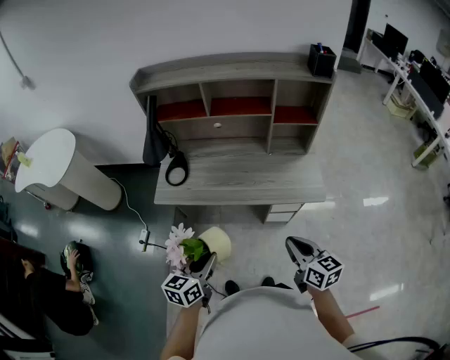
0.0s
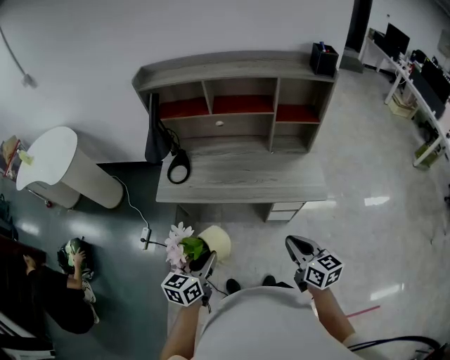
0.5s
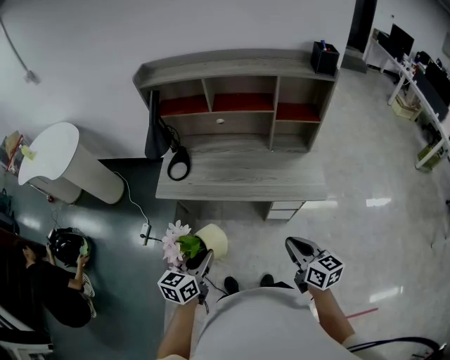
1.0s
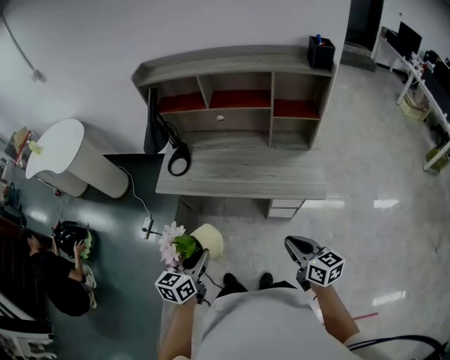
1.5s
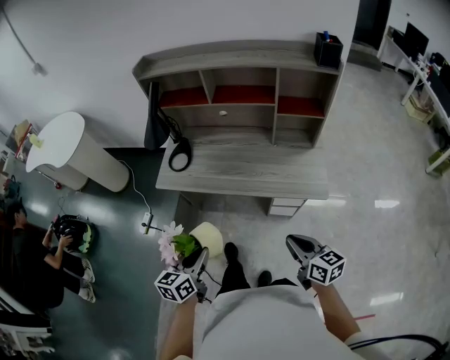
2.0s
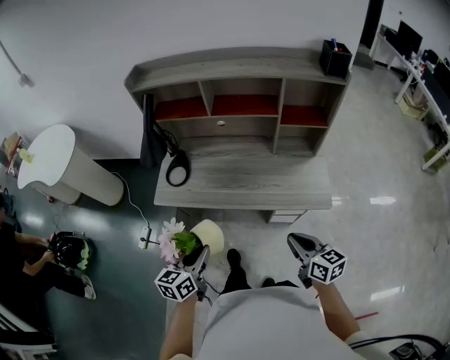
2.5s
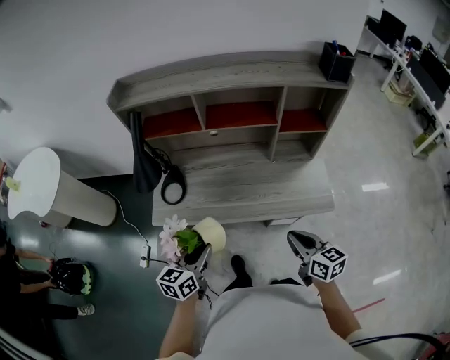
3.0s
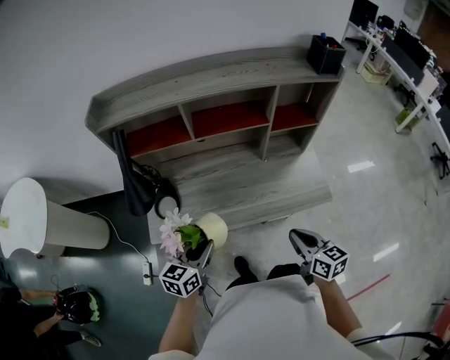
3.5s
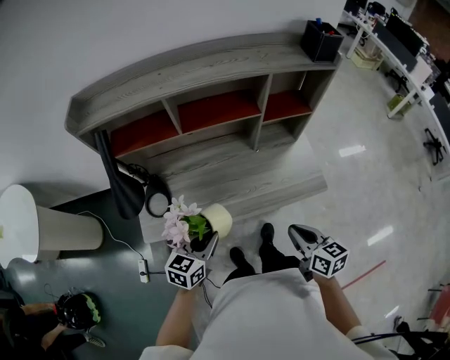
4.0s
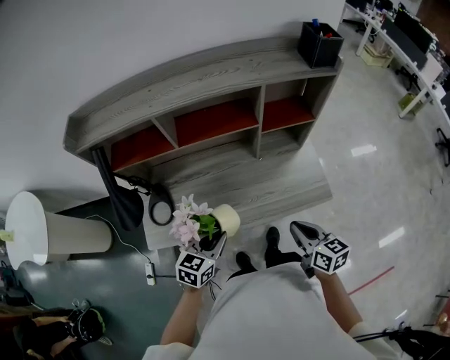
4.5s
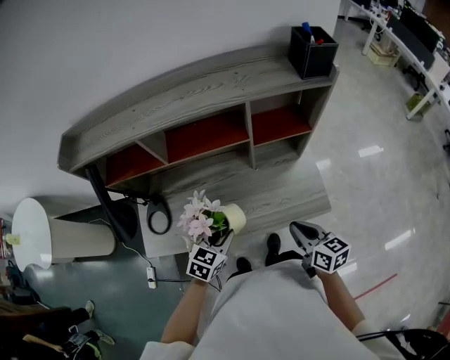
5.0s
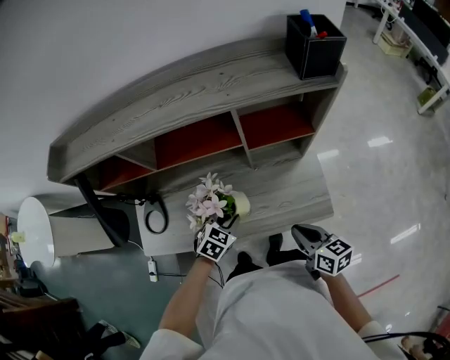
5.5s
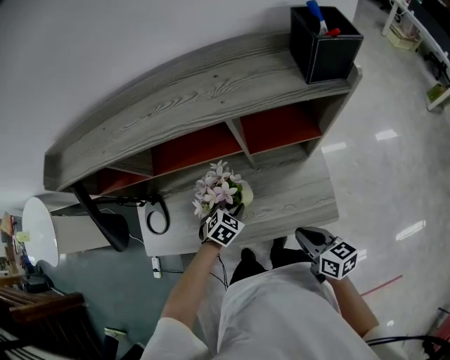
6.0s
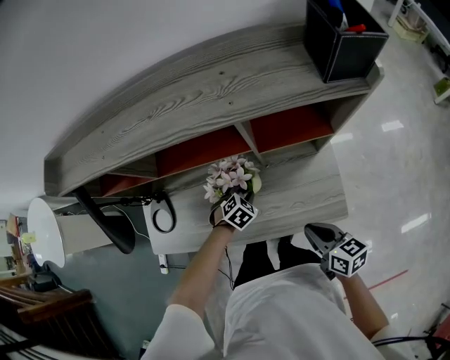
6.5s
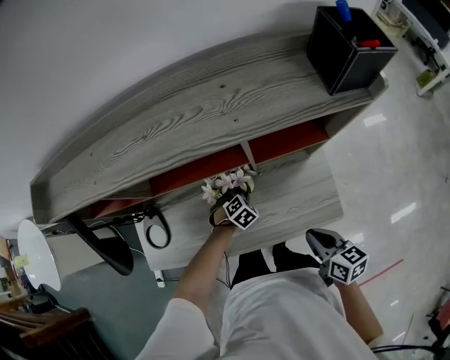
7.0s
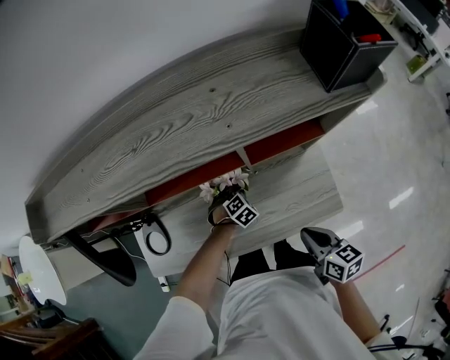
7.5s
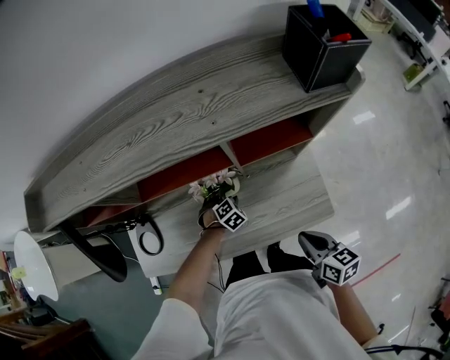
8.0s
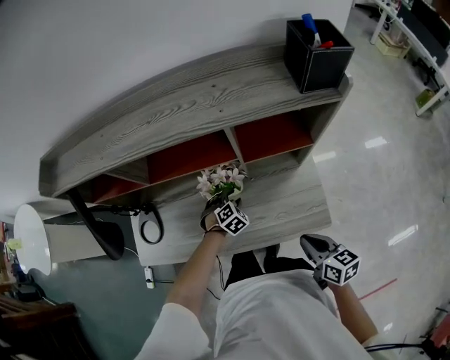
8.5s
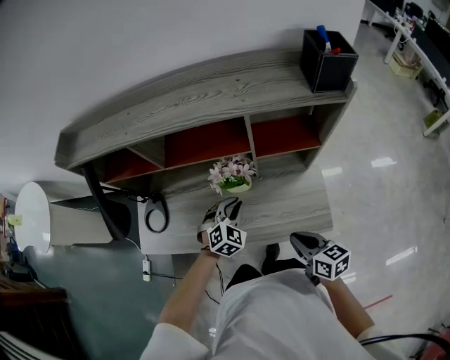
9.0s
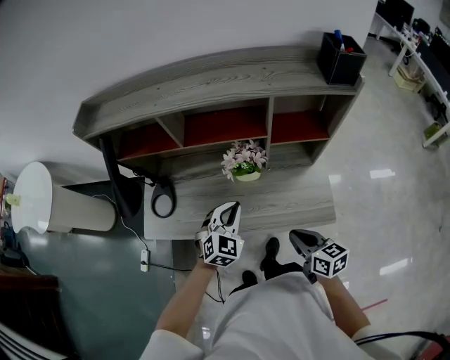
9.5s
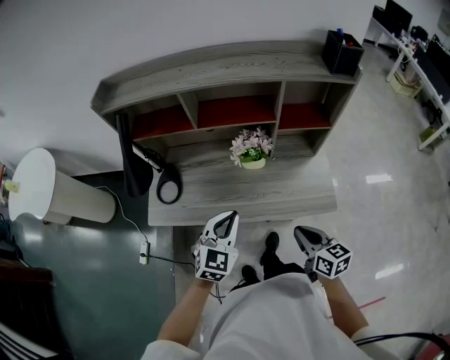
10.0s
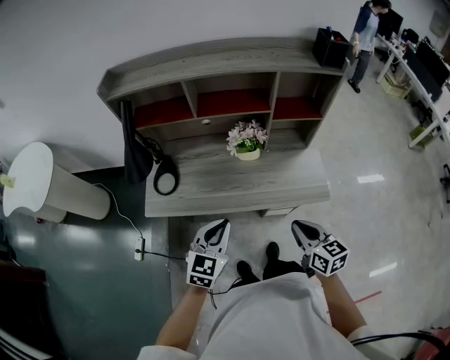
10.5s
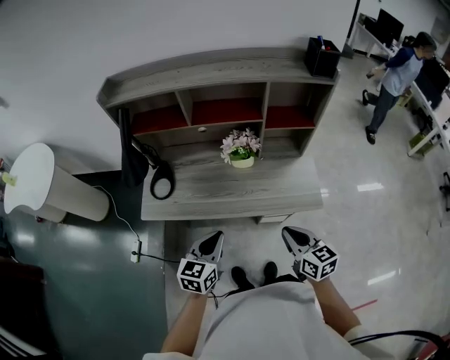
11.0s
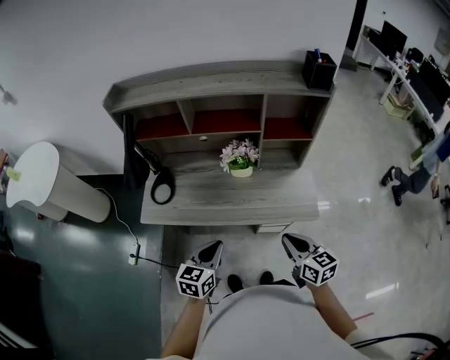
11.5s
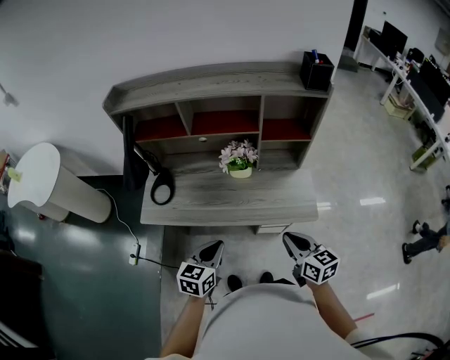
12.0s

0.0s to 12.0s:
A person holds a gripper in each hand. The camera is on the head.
0.0s to 2.0s: The right gripper goes approximately 5 cm to the right.
2.0s to 4.0s: The left gripper shifts by approximately 30 cm, and swivels some 40 degrees, while the right gripper ends up approximately 20 cm from where it was, and rotates approximately 20 degrees.
4.0s to 6.0s: The right gripper shifts approximately 20 cm forward and to the right. The left gripper moves forward, to the right and downward, roughly 35 cm, and tilts its fingers approximately 30 degrees downward.
6.0s to 8.0s: The left gripper goes some 15 cm downward and forward, swivels roughly 20 degrees, and opens up.
8.0s to 10.0s: The left gripper heads upward, backward and to the left, covering roughly 40 cm, tips its fingers upward by some 50 degrees, and closes up. The right gripper goes approximately 15 cm backward, to the left and upward.
10.0s to 12.0s: The left gripper goes roughly 10 cm backward, and rotates roughly 30 degrees, while the right gripper changes place by some 5 cm.

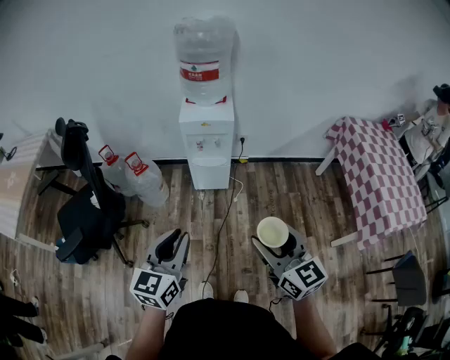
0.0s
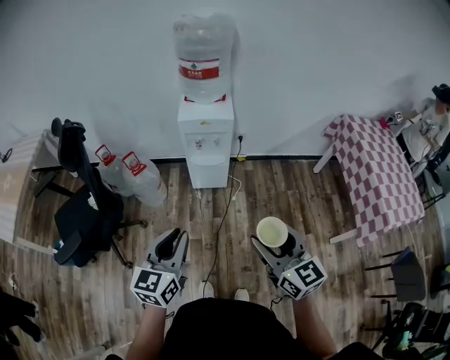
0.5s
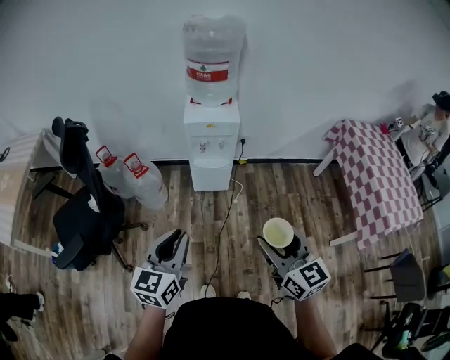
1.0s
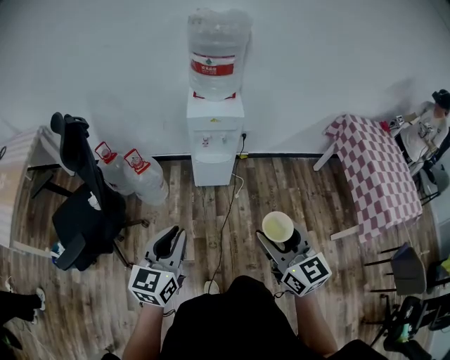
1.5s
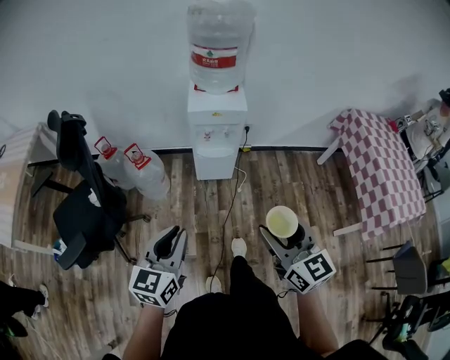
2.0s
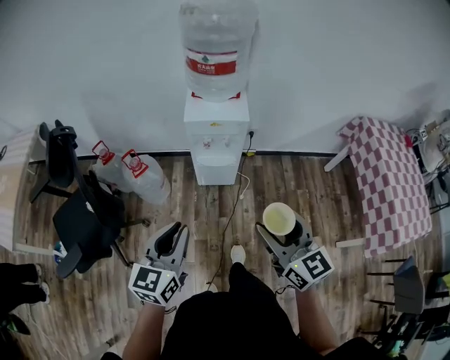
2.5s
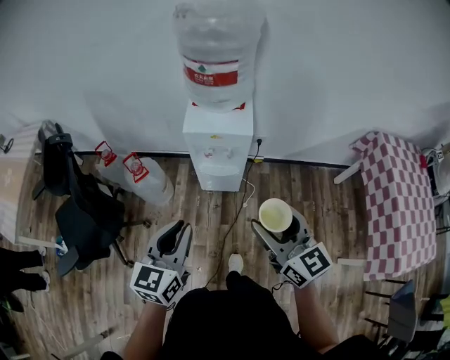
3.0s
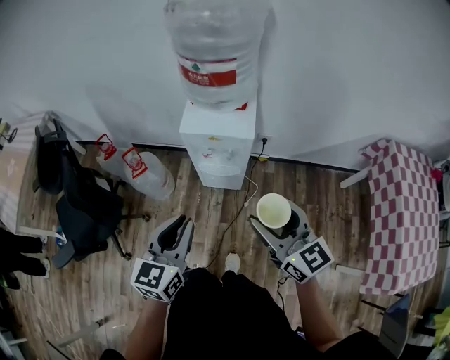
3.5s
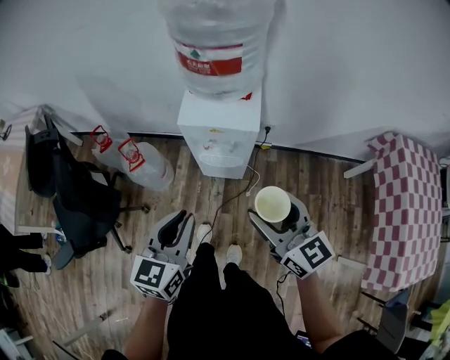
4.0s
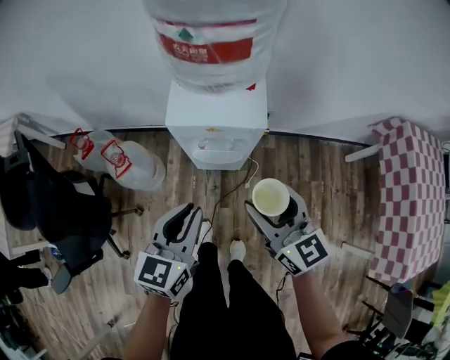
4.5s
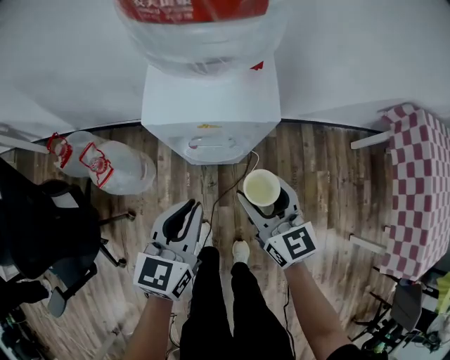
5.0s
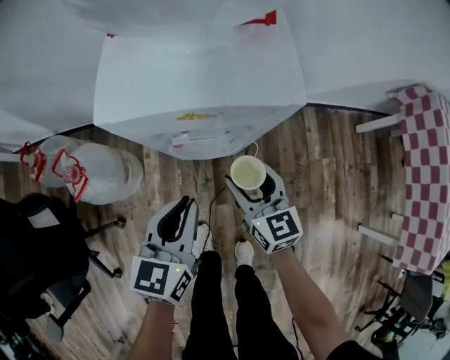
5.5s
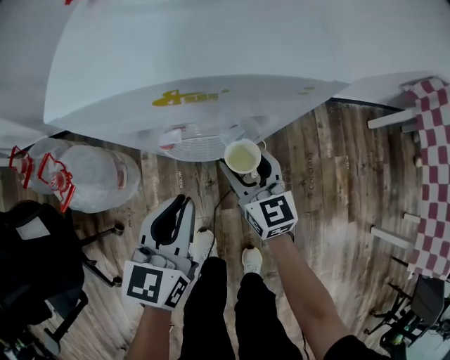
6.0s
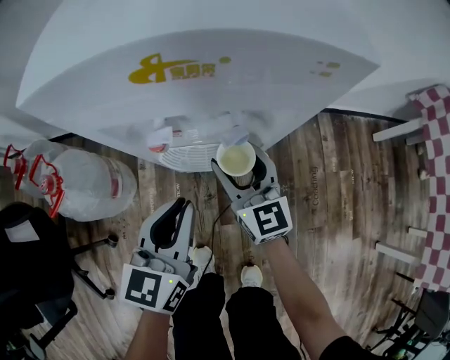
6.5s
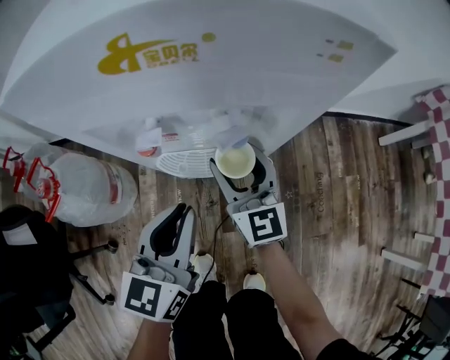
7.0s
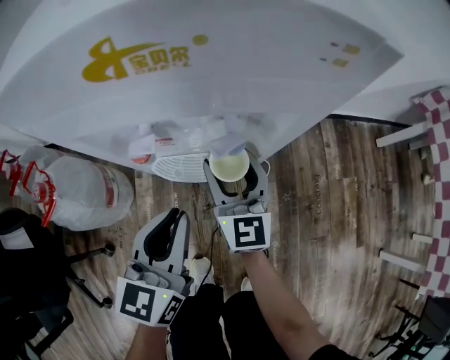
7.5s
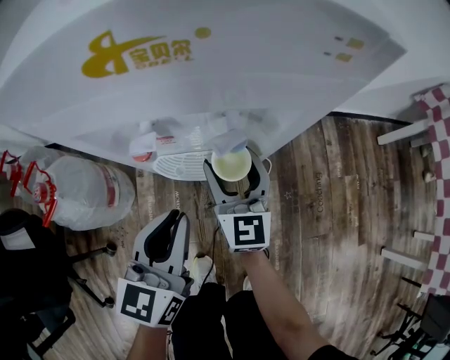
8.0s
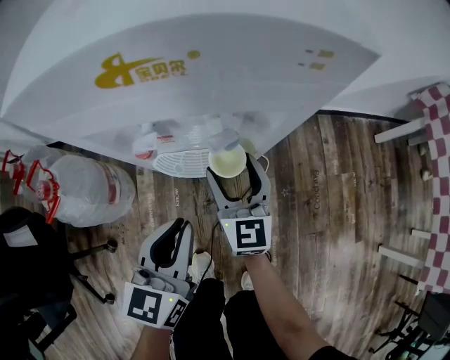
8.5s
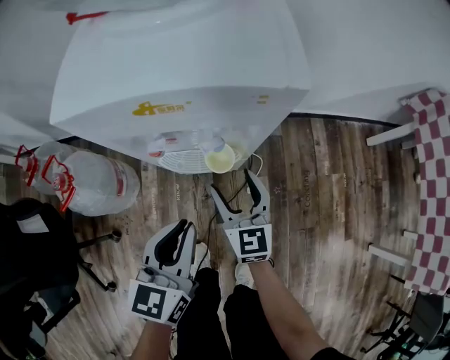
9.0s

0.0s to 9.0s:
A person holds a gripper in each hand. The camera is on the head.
0.0s to 2.0s: The left gripper travels to the left by roughly 10 cm, while the right gripper moves to the left and forward, approximately 10 cm.
2.0s to 4.5s: The left gripper travels forward and to the right by about 35 cm; the right gripper travels forward by approximately 35 cm.
4.5s to 7.0s: The right gripper is displaced downward and forward by roughly 50 cm. Meanwhile the left gripper moves downward, some 35 cm.
7.0s to 9.0s: The left gripper moves upward, approximately 5 cm, while the right gripper travels backward by approximately 5 cm.

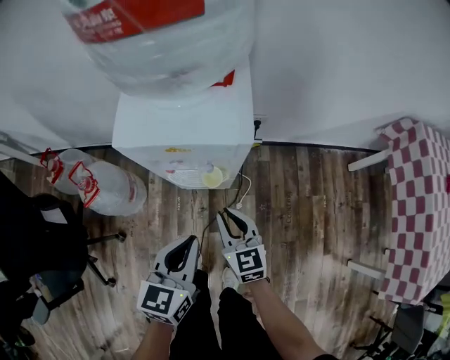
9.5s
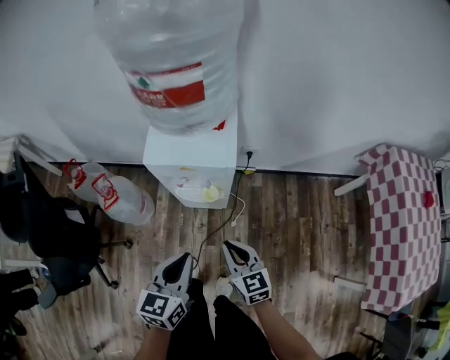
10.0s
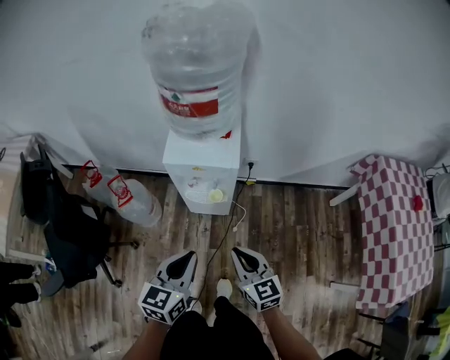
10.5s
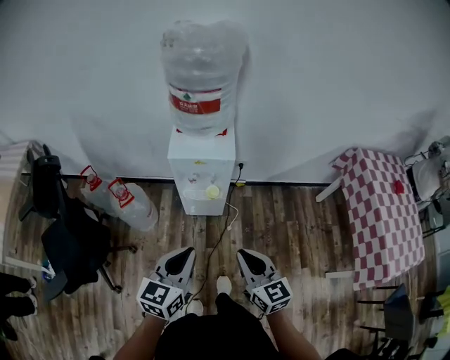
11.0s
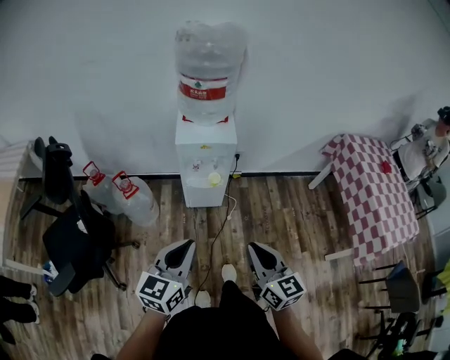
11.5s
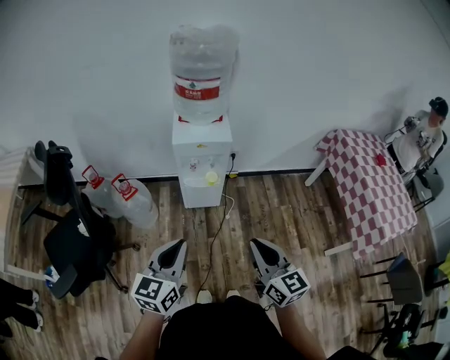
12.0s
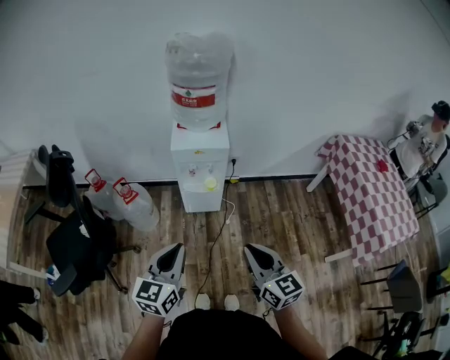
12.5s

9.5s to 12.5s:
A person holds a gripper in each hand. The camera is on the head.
9.5s to 11.0s: Both grippers travel together upward and backward, about 35 cm.
11.0s to 12.5s: The right gripper goes some 15 cm backward and upward. Meanwhile the left gripper moves backward and to the left, about 10 cm.

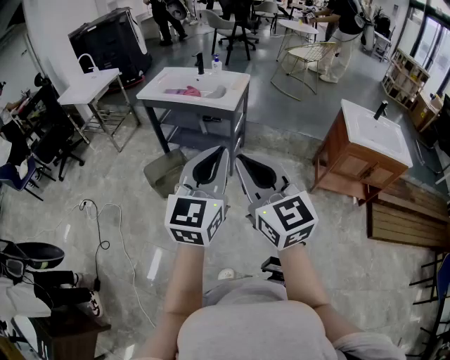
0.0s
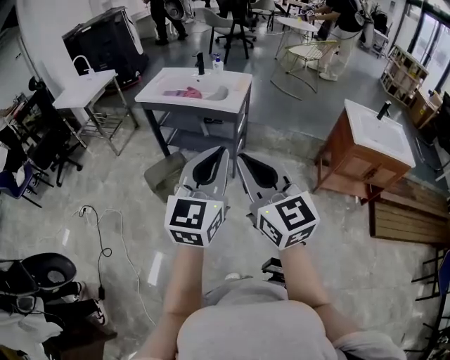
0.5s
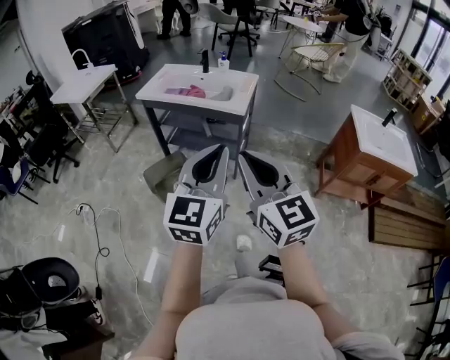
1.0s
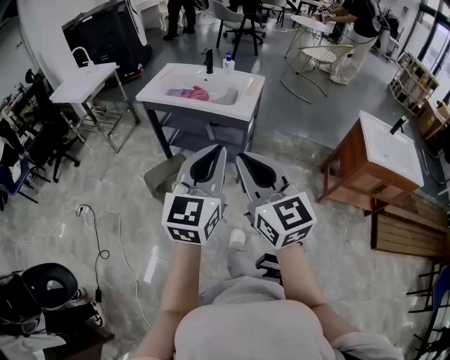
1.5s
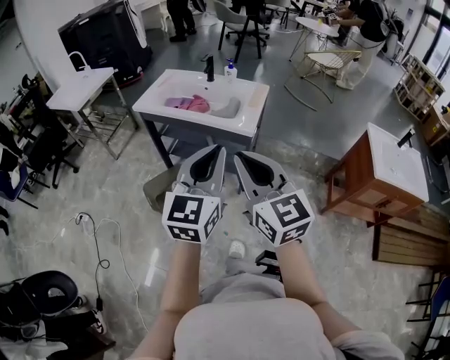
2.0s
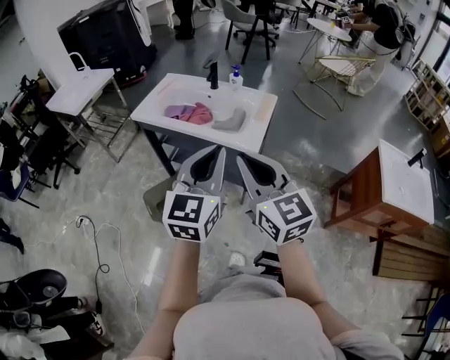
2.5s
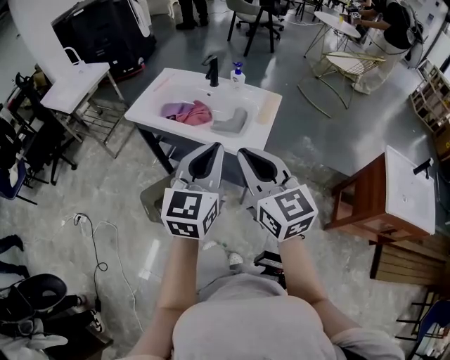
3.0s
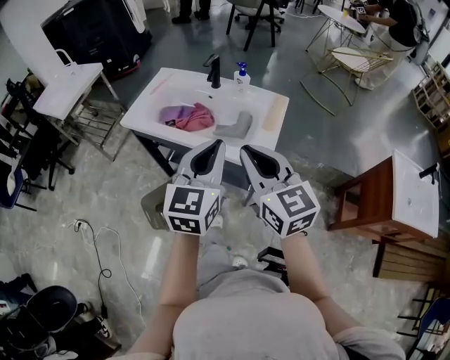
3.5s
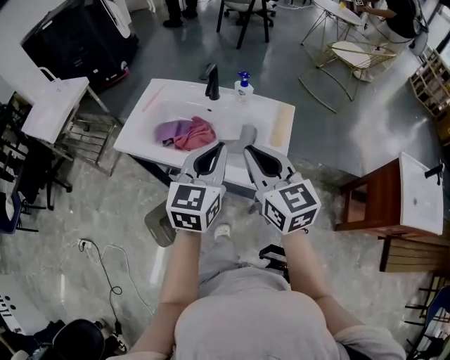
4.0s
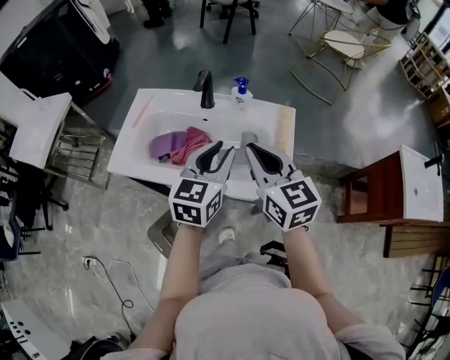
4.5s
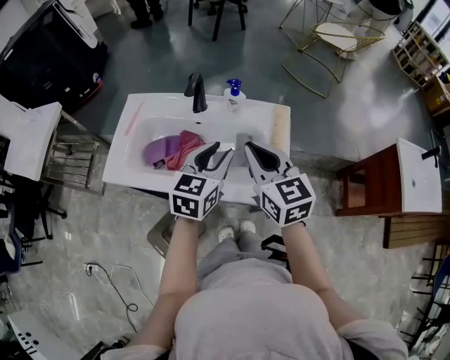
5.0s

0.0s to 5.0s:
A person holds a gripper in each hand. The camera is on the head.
0.0s to 2.5s: Both grippers move forward, approximately 40 cm.
2.5s to 5.0s: The left gripper goes some 40 cm forward and downward, and rotates approximately 30 degrees. Meanwhile the right gripper heads forward, covering approximately 35 cm, and rotates approximately 20 degrees.
